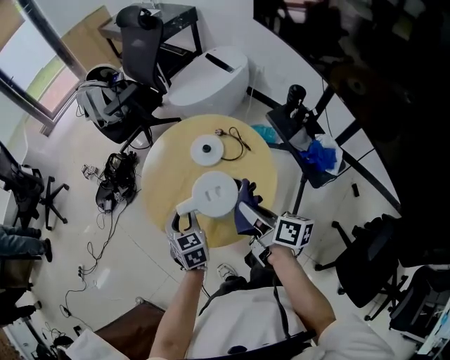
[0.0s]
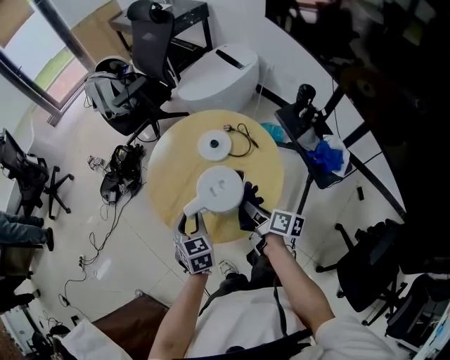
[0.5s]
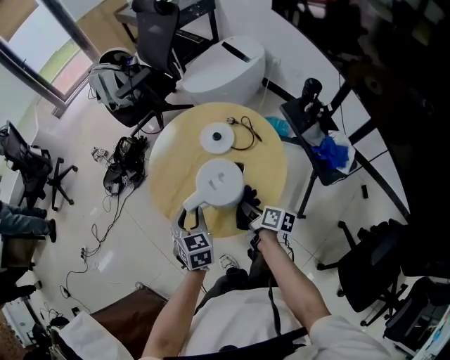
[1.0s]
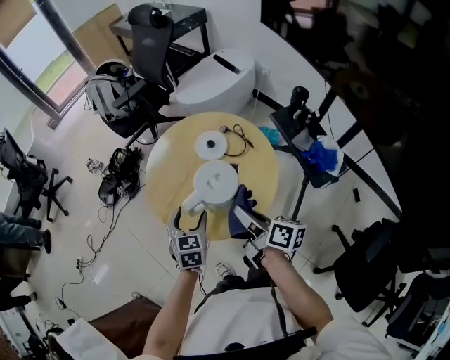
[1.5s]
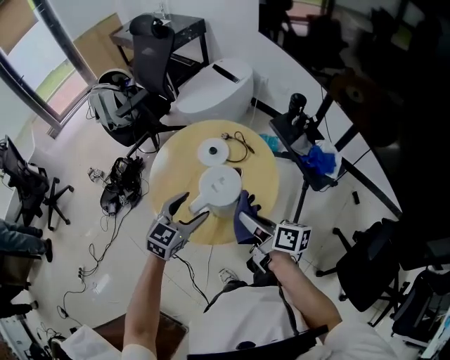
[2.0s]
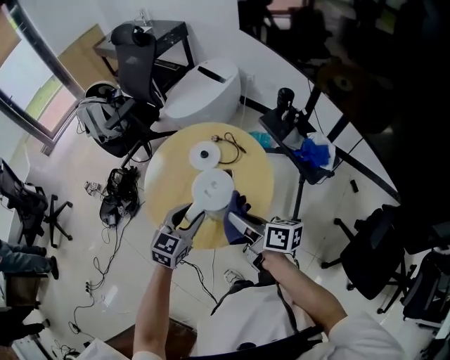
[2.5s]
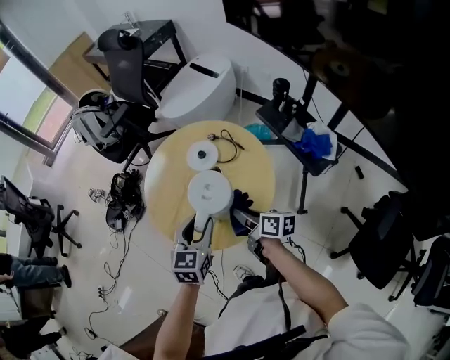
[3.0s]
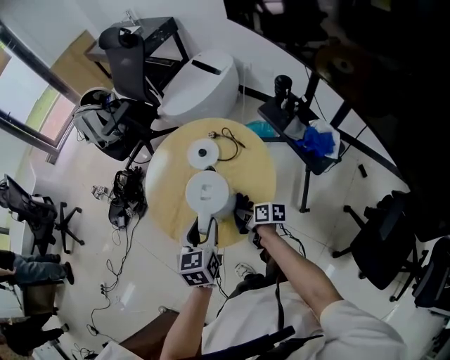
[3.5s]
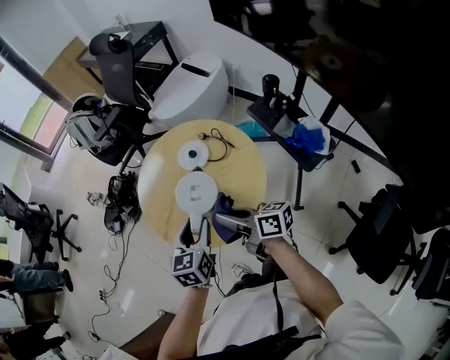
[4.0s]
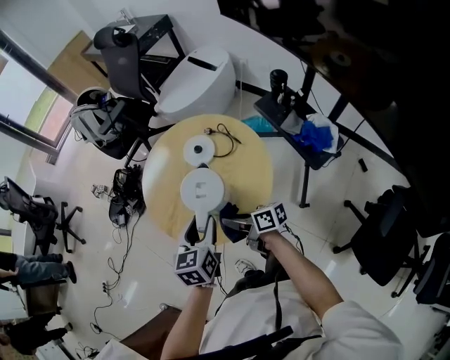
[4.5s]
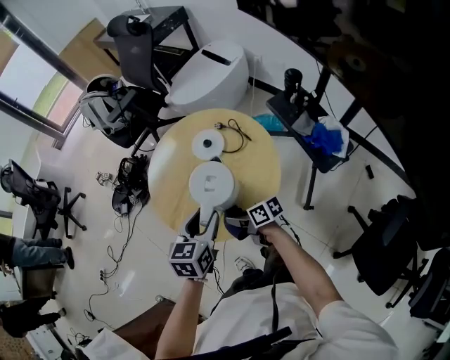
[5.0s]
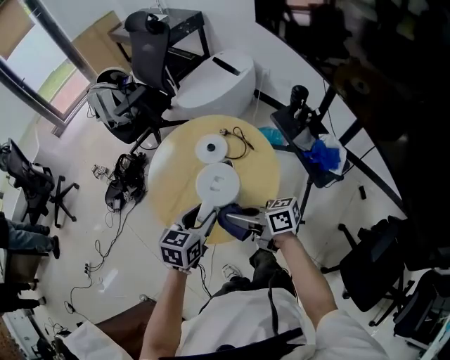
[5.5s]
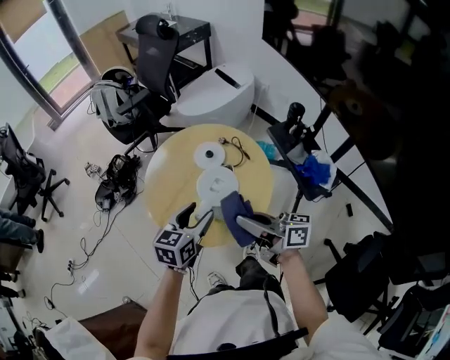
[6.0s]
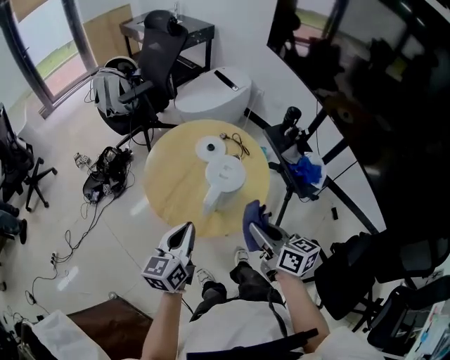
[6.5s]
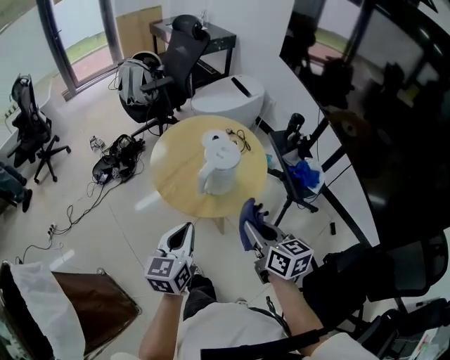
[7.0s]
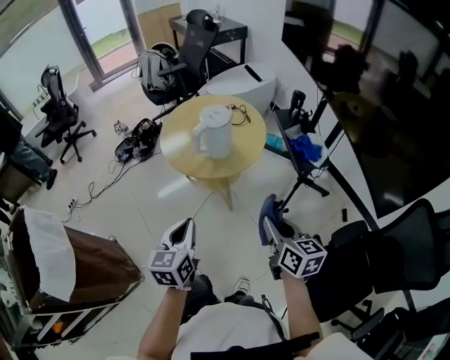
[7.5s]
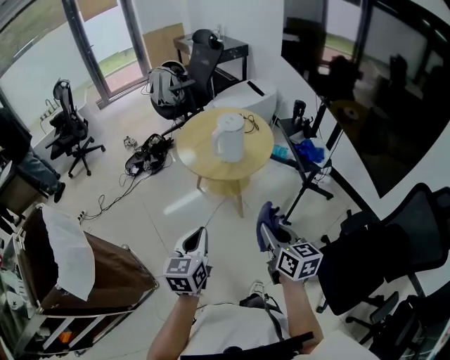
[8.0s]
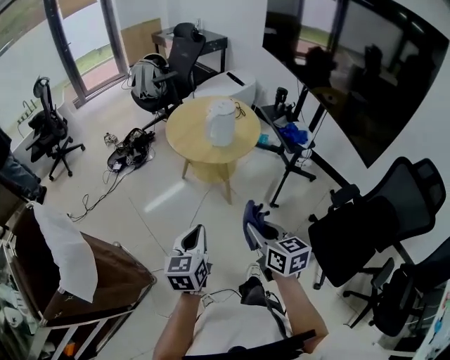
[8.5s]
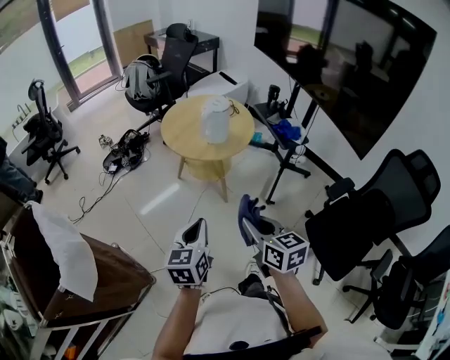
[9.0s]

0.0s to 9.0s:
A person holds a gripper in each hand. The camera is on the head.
0.0s to 2.0s: The left gripper is displaced upward by roughly 5 cm, changes its angle by some 50 degrees, and opens; the right gripper reaches about 20 cm downward, then returns.
2.0s to 4.5s: The left gripper changes place by approximately 5 cm, rotates about 40 degrees, and closes its fingers, while the right gripper swings up and down, some 20 cm each way, with 2 reversals, and changes its angle by roughly 20 degrees.
4.5s to 7.0s: The left gripper goes about 20 cm backward, to the left and upward, and closes its fingers. The right gripper moves upward and backward, roughly 25 cm, and changes its angle by roughly 40 degrees.
7.0s to 9.0s: Both grippers move backward, some 30 cm.

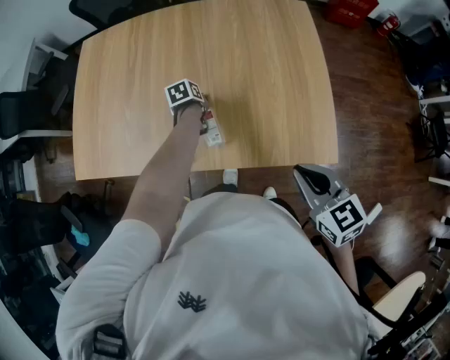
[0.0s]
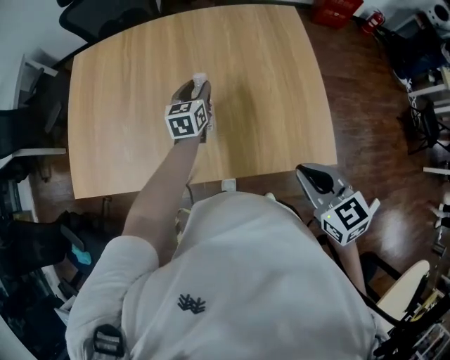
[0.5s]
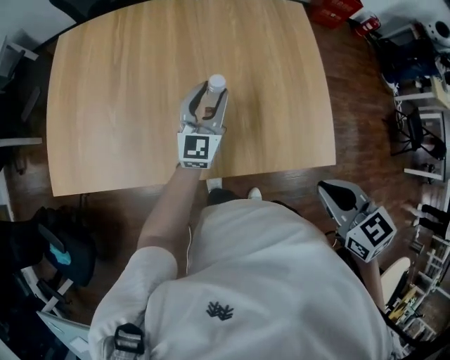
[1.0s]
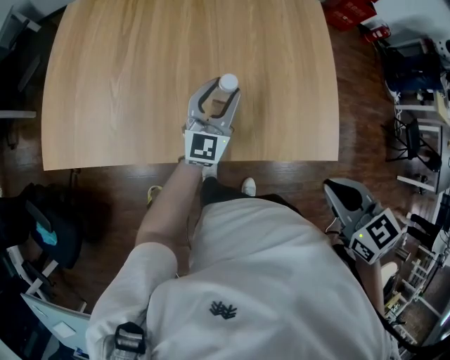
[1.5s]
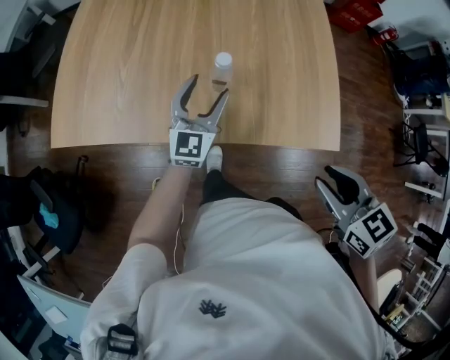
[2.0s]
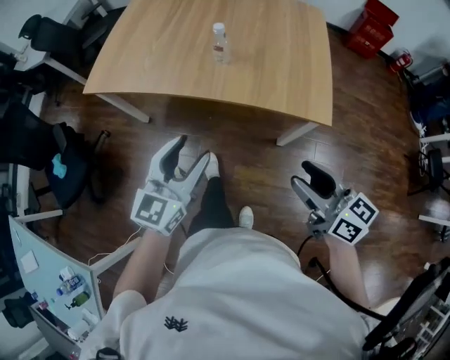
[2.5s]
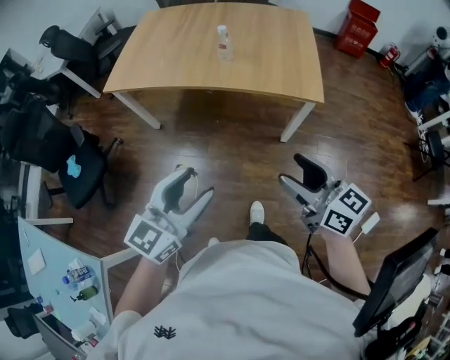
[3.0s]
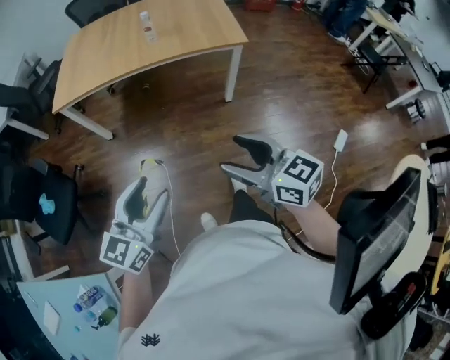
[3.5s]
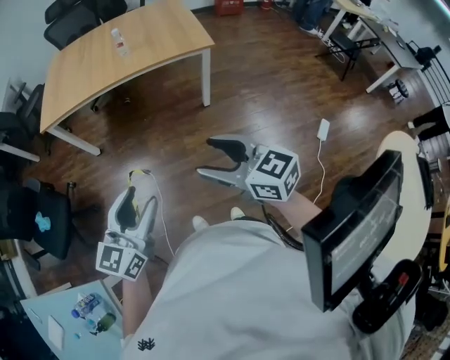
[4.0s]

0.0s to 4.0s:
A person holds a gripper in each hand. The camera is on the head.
0.0s to 2.0s: The right gripper heads backward, covering approximately 5 cm, and opens. The left gripper shifts some 25 cm upward and backward, and tips its fingers upward by approximately 60 degrees.
2.0s to 4.0s: The two grippers travel together, backward, roughly 50 cm. The right gripper rotates roughly 30 degrees, and opens its fingers. Meanwhile the left gripper changes its angle by roughly 20 degrees.

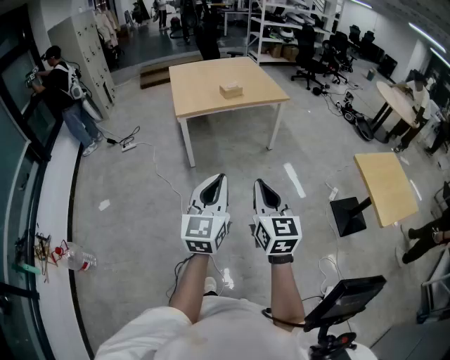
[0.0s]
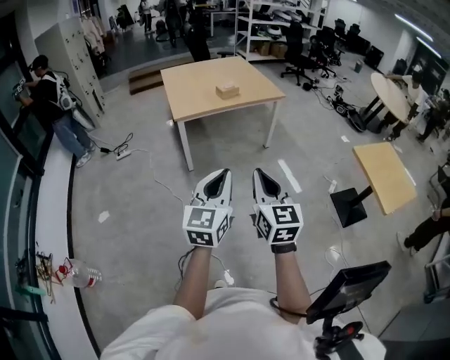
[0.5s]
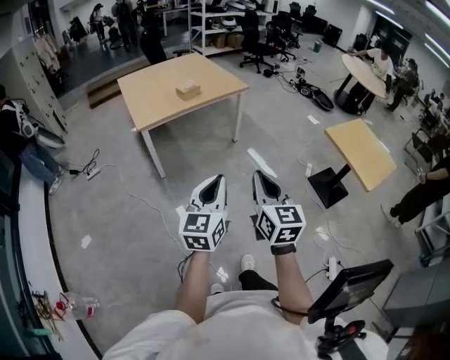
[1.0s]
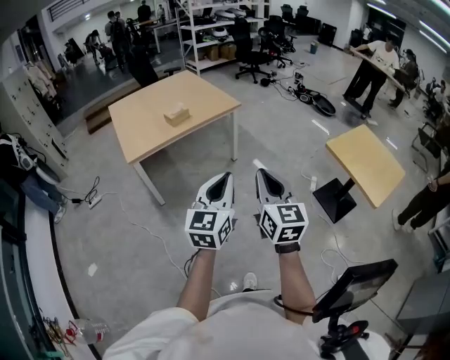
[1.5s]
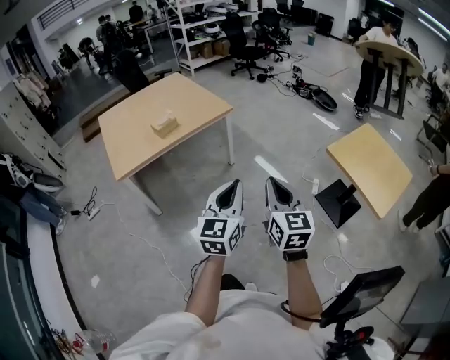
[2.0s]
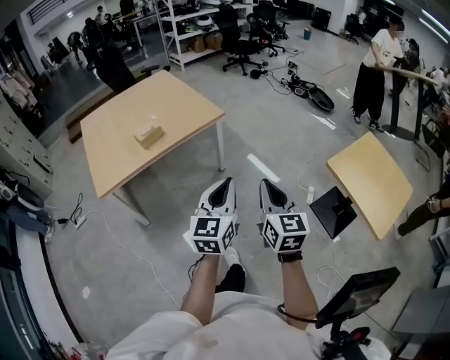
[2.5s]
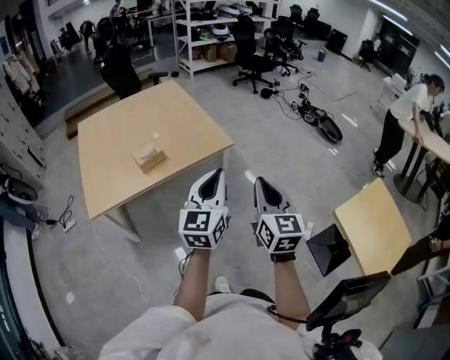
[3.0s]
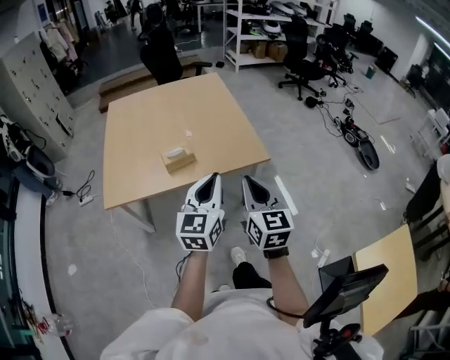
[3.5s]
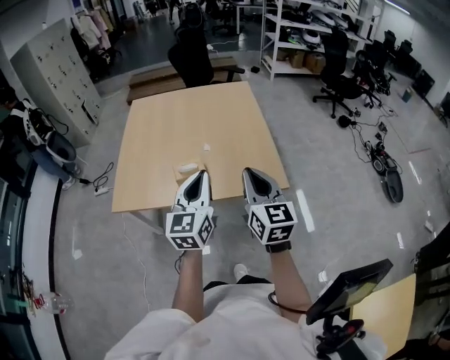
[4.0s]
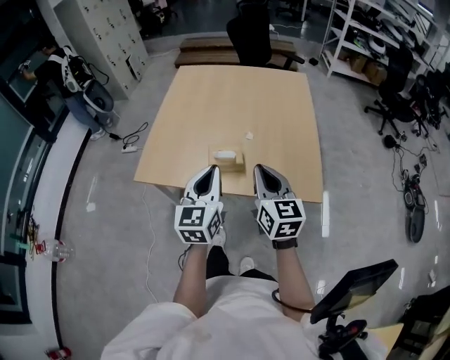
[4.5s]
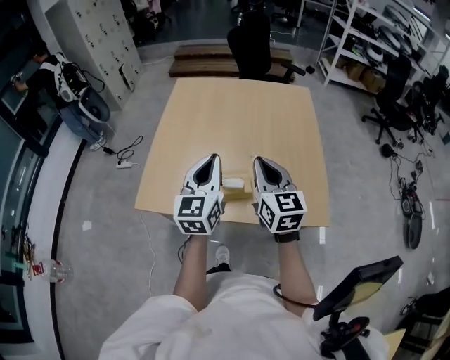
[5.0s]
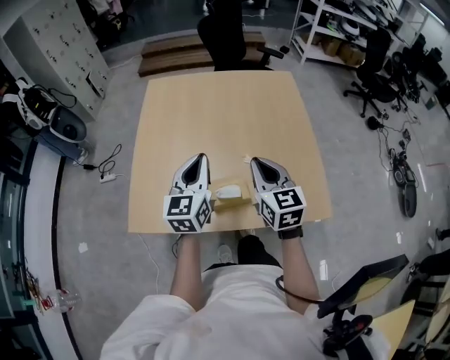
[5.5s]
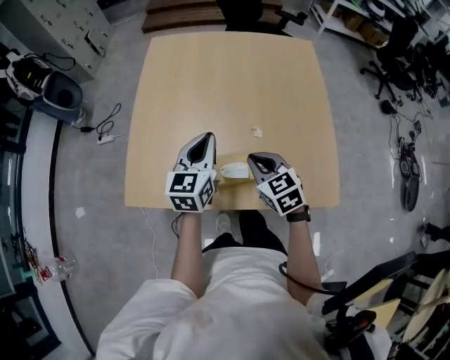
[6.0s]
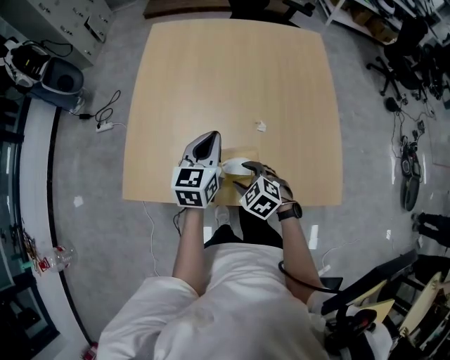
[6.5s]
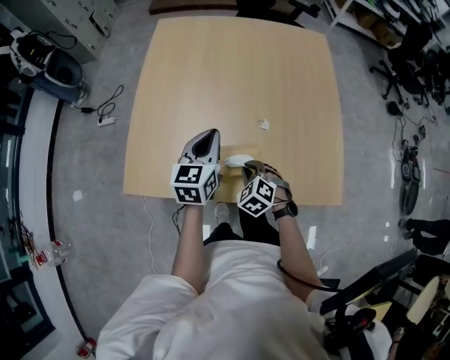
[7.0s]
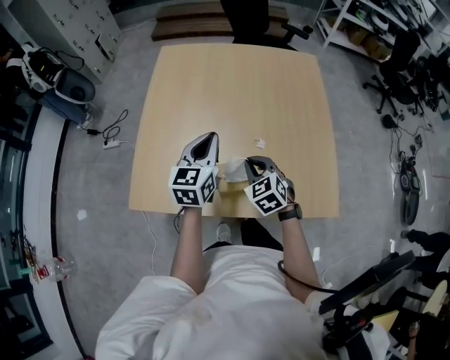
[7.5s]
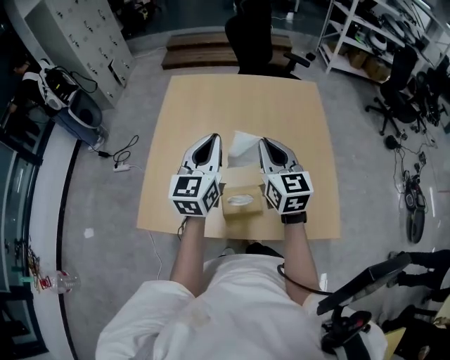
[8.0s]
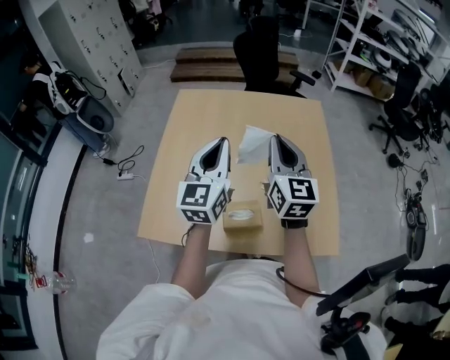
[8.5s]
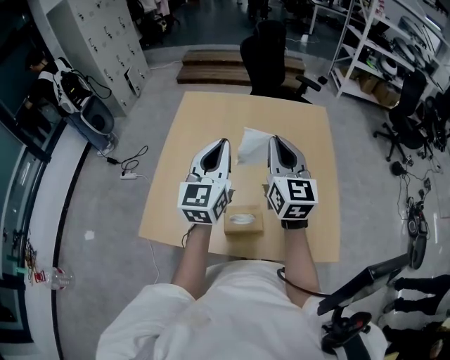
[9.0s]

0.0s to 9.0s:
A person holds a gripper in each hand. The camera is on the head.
0.0s to 2.0s: Both grippers move forward and to the right, some 40 cm. The right gripper turns by about 20 degrees. Meanwhile the left gripper turns by some 20 degrees.
2.0s to 4.5s: Both grippers are carried approximately 80 cm. The left gripper turns by roughly 50 degrees. Meanwhile the right gripper turns by roughly 50 degrees.
4.5s to 7.0s: The left gripper heads forward and downward, covering roughly 35 cm. The right gripper shifts approximately 40 cm downward, forward and to the left, tilts its fingers approximately 50 degrees downward, and opens, then closes again.
7.0s to 9.0s: The left gripper travels upward by approximately 20 cm, and swivels some 30 degrees. Meanwhile the right gripper heads upward, covering about 40 cm, and points its fingers some 60 degrees further upward.

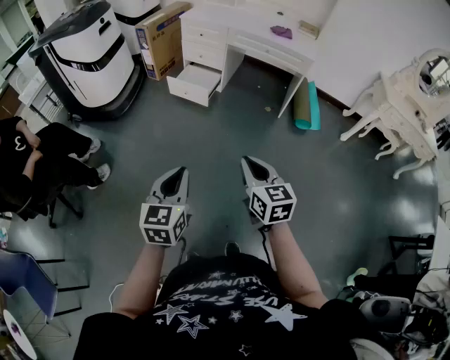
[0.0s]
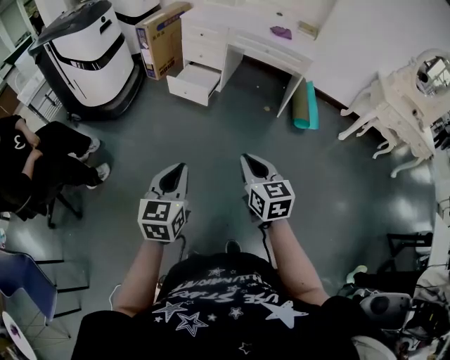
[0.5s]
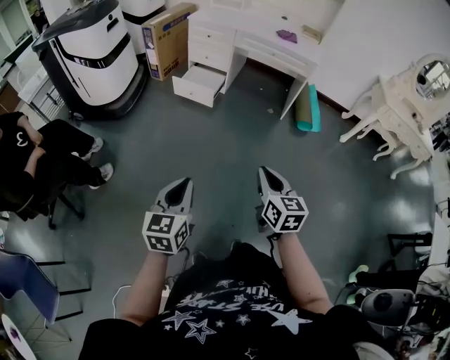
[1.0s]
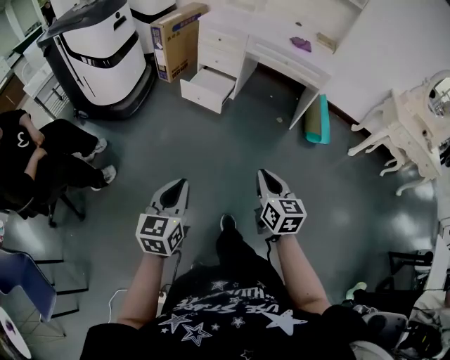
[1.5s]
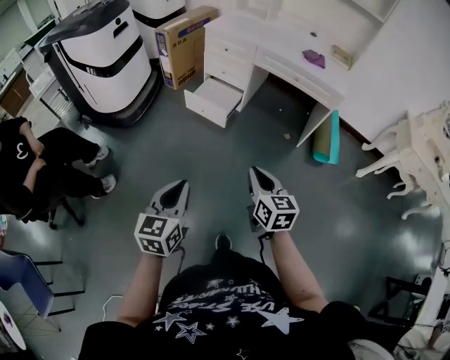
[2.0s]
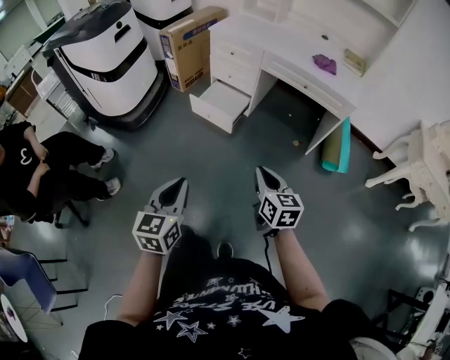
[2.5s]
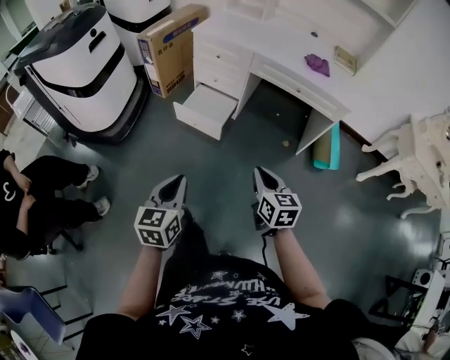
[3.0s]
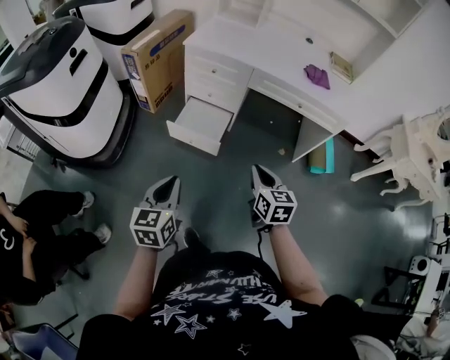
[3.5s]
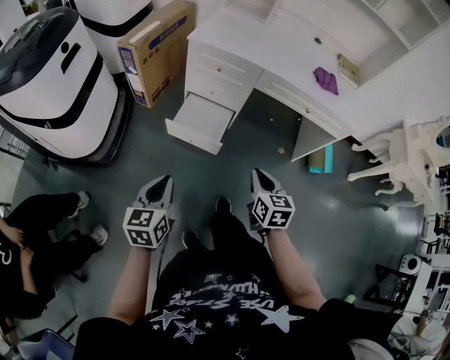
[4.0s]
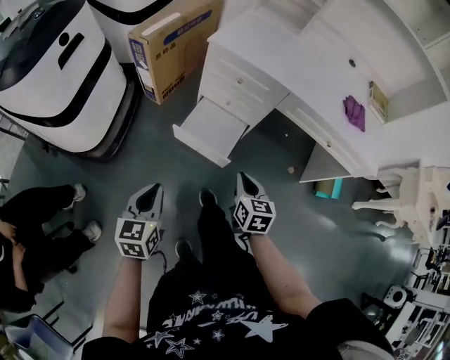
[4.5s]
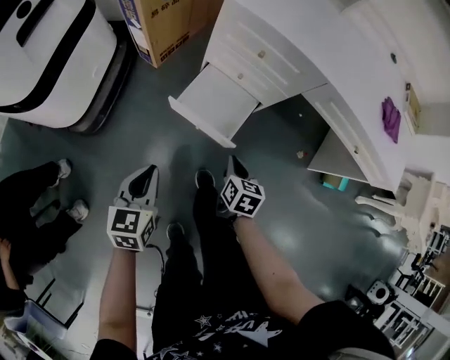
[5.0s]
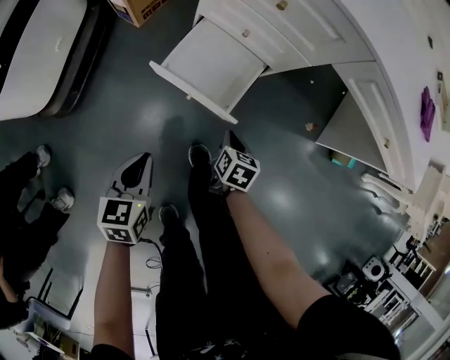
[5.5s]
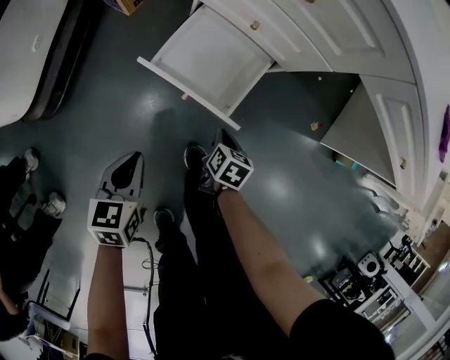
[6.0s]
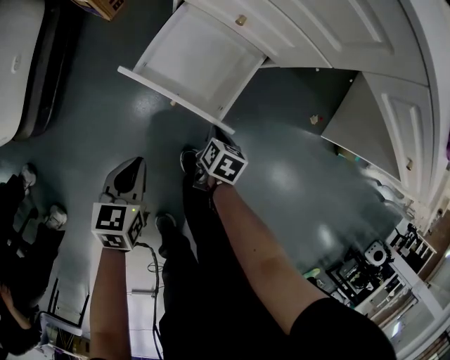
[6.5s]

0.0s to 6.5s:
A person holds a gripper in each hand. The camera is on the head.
0.0s to 2.0s: Both grippers travel together forward, approximately 15 cm.
2.0s to 4.5s: Both grippers are carried forward, roughly 50 cm.
4.5s to 6.5s: Both grippers travel together downward, roughly 40 cm. The right gripper rotates about 40 degrees. Meanwhile the left gripper swivels about 20 degrees.
